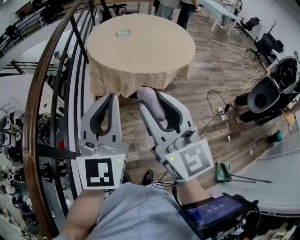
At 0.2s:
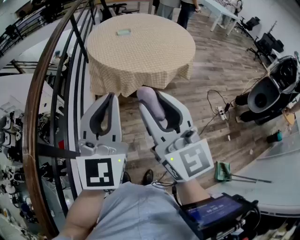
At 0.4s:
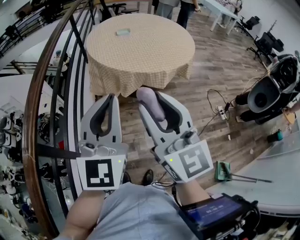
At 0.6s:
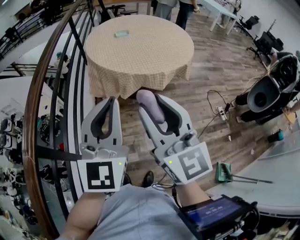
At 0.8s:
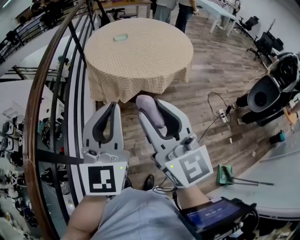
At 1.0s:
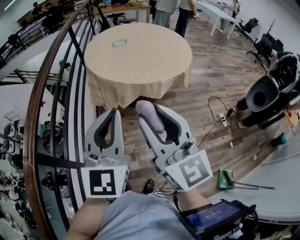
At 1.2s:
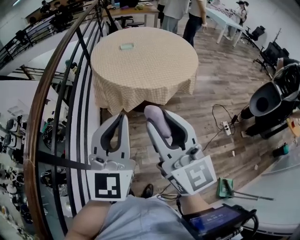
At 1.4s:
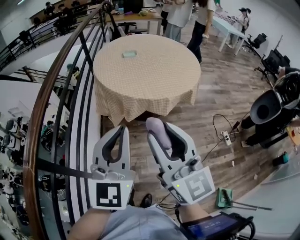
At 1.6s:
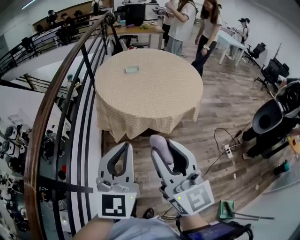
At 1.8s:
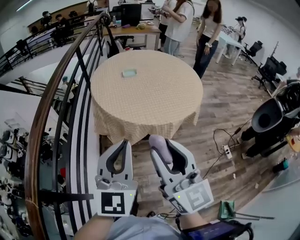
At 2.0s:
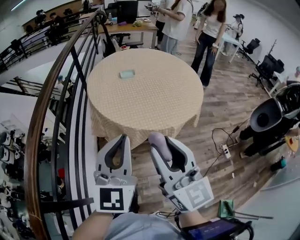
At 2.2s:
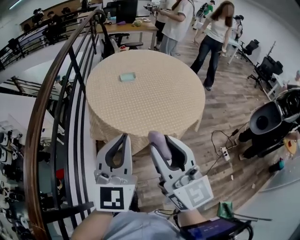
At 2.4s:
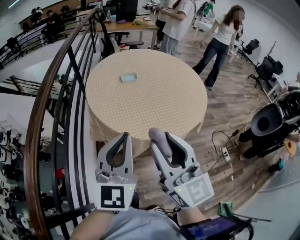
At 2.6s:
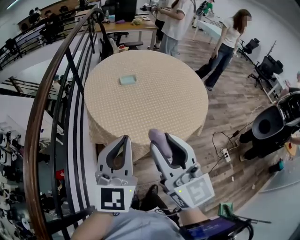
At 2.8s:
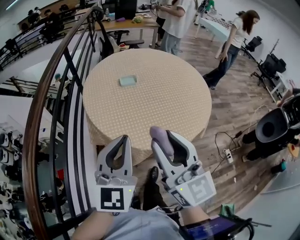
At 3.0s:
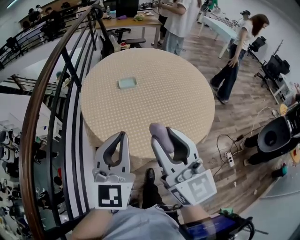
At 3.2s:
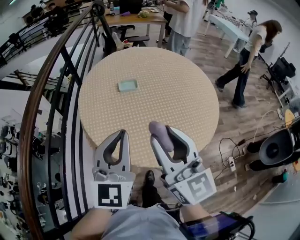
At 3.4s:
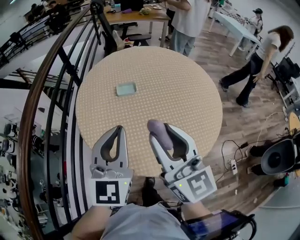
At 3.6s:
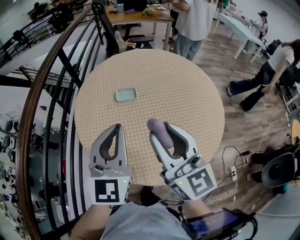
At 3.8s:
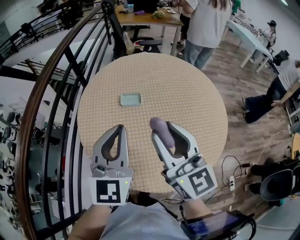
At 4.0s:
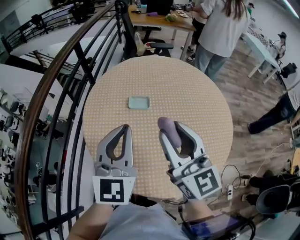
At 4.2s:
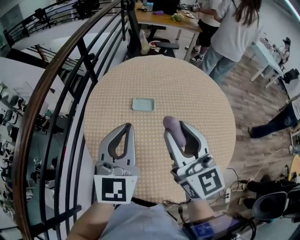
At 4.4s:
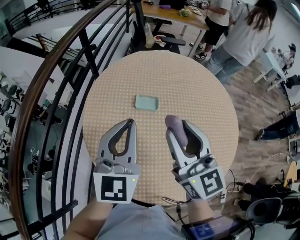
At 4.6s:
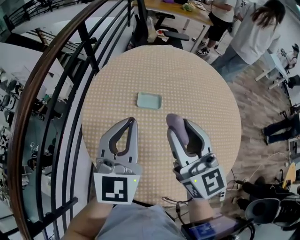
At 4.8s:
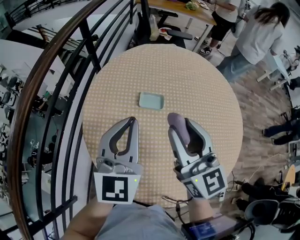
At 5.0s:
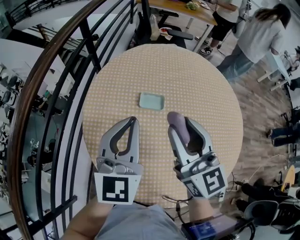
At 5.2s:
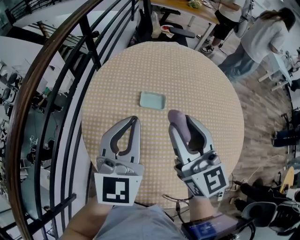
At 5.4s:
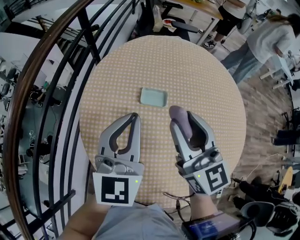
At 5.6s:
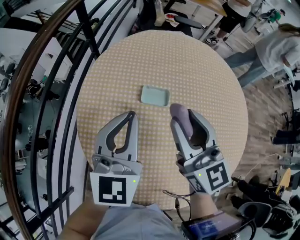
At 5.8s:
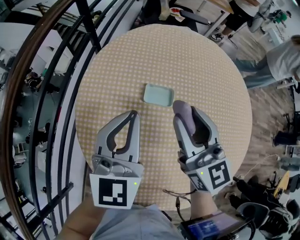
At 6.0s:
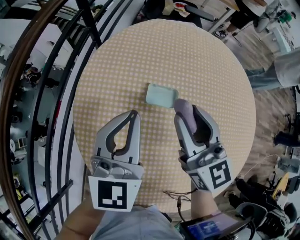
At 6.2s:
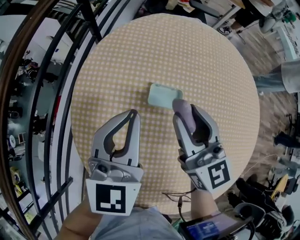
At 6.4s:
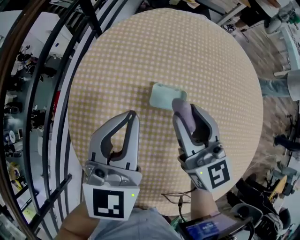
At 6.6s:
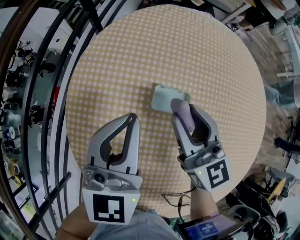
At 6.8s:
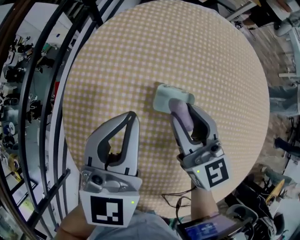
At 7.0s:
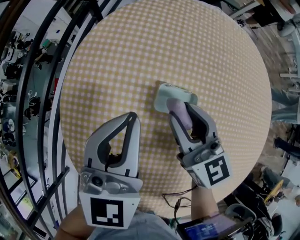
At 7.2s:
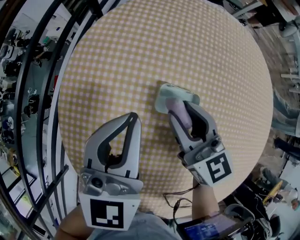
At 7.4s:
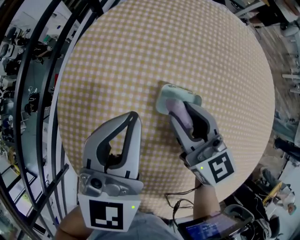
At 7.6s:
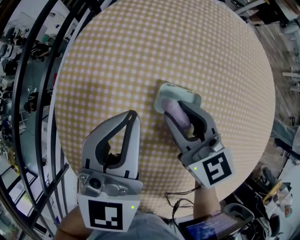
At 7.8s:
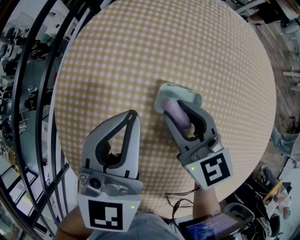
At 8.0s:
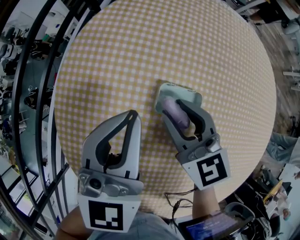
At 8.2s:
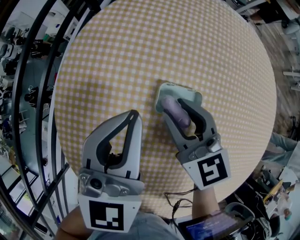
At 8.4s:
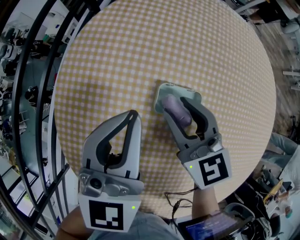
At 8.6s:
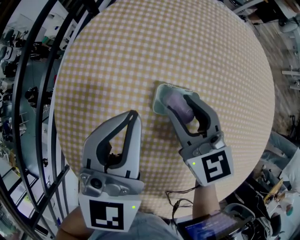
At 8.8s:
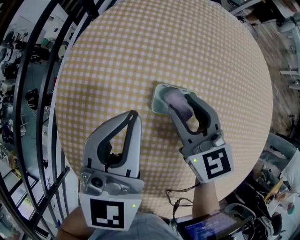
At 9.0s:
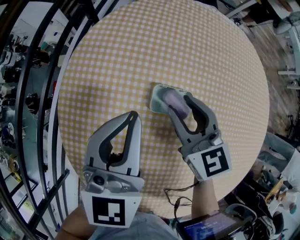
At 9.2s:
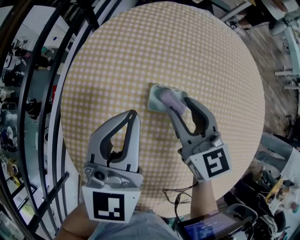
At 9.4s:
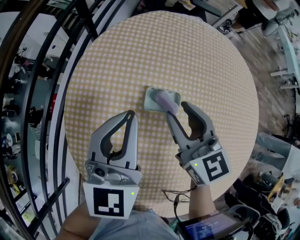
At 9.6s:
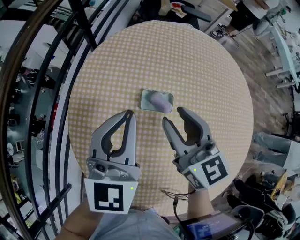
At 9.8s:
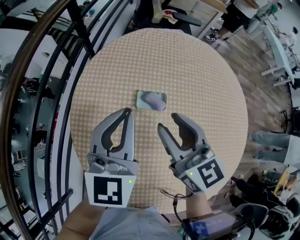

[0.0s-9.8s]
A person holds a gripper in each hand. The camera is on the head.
0.0s to 1.4s: The grippers both shift to the right by roughly 5 cm.
1.4s to 2.8s: The grippers both shift forward by roughly 30 cm.
2.8s to 4.2s: Both grippers travel together forward, roughly 30 cm.
4.2s to 5.6s: The two grippers go approximately 15 cm forward and downward.
5.6s to 7.0s: The left gripper goes approximately 15 cm downward and forward. Meanwhile the right gripper moves downward and forward, approximately 20 cm.
7.0s to 8.4s: There are only small adjustments of the grippers.
8.4s to 9.8s: Both grippers travel together upward and backward, approximately 15 cm.

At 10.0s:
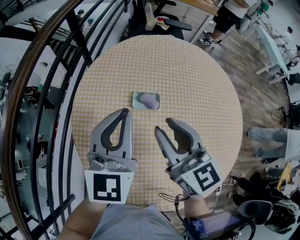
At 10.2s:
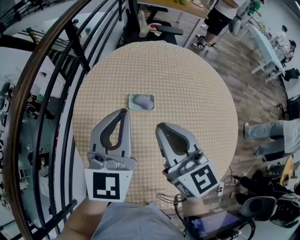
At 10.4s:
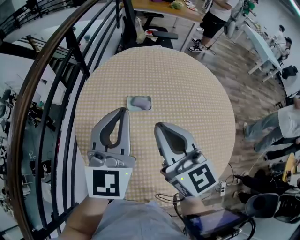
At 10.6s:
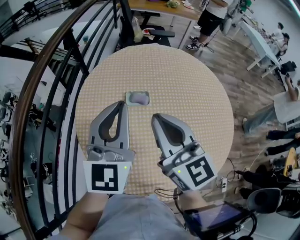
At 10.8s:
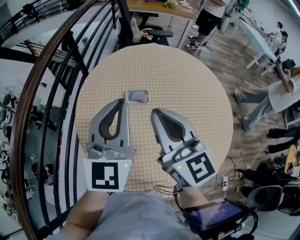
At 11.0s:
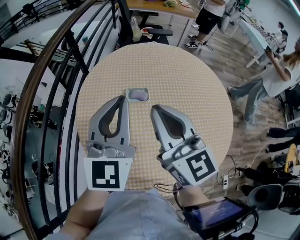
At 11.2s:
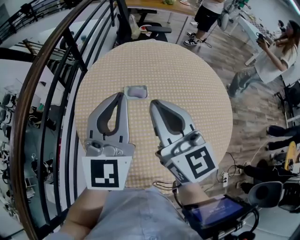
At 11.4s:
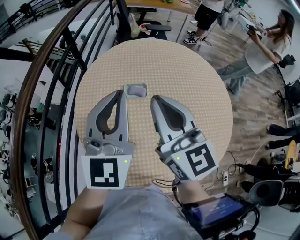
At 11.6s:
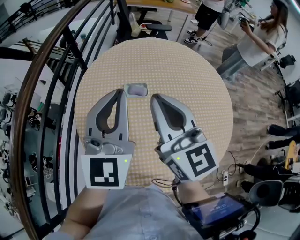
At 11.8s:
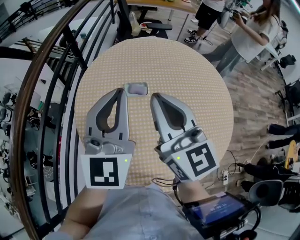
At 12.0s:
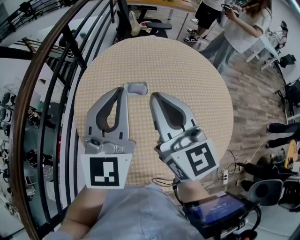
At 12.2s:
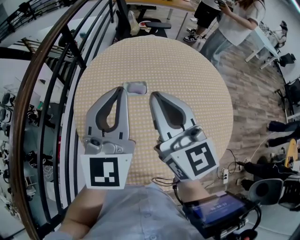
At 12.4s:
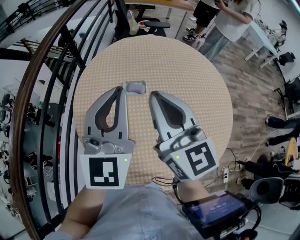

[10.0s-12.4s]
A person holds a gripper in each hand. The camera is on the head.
10.0s to 11.2s: The grippers both shift upward and backward by about 10 cm. The right gripper closes up.
11.2s to 12.4s: The grippers stay close to where they were, moving slightly.

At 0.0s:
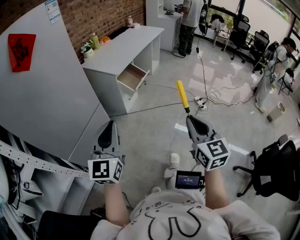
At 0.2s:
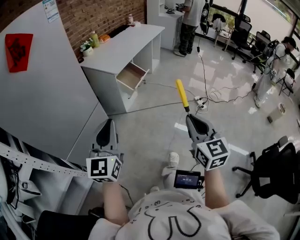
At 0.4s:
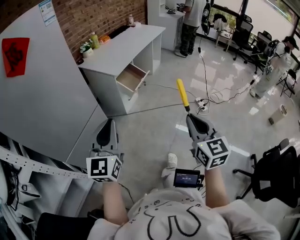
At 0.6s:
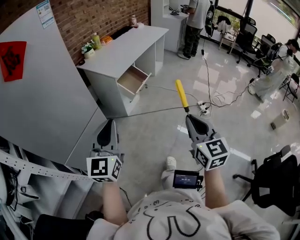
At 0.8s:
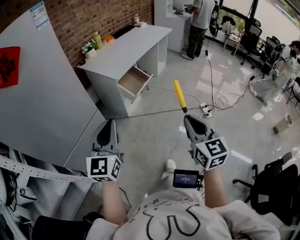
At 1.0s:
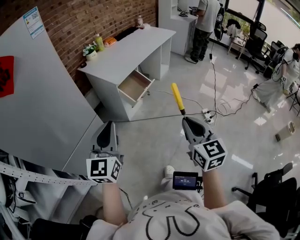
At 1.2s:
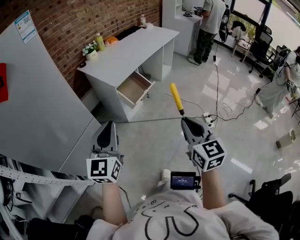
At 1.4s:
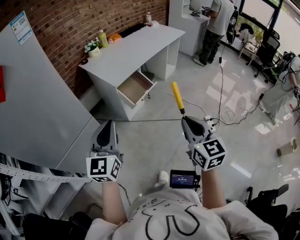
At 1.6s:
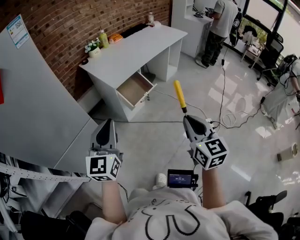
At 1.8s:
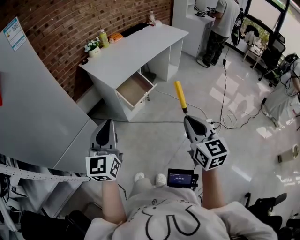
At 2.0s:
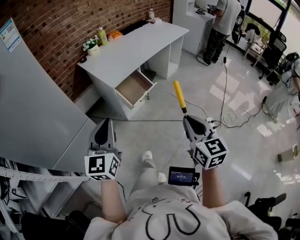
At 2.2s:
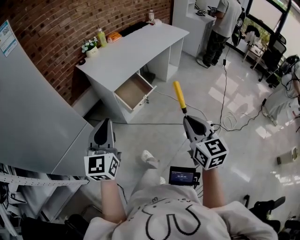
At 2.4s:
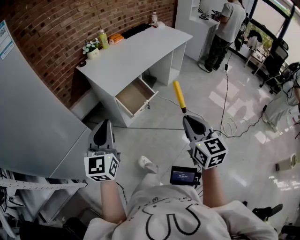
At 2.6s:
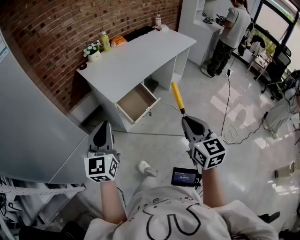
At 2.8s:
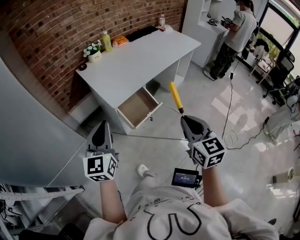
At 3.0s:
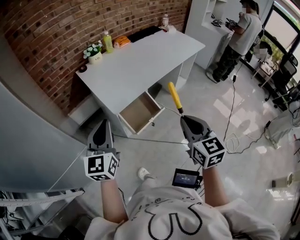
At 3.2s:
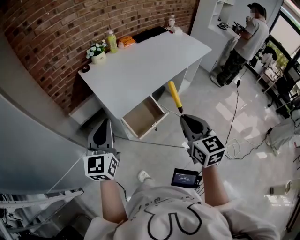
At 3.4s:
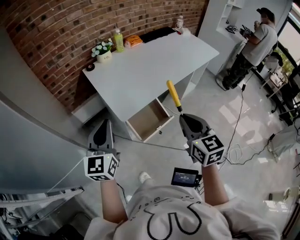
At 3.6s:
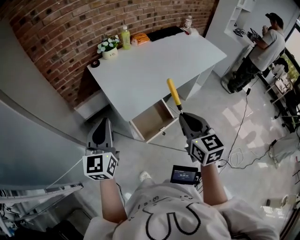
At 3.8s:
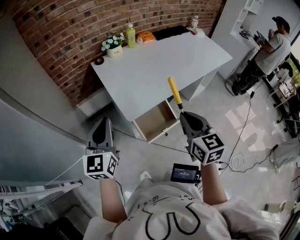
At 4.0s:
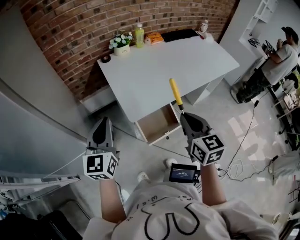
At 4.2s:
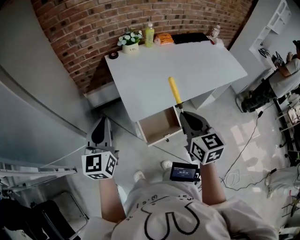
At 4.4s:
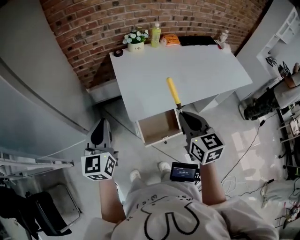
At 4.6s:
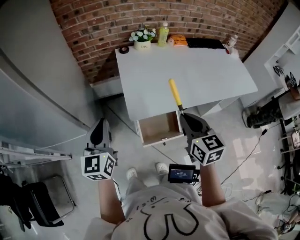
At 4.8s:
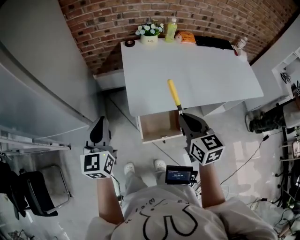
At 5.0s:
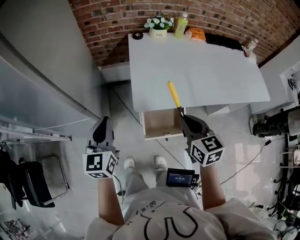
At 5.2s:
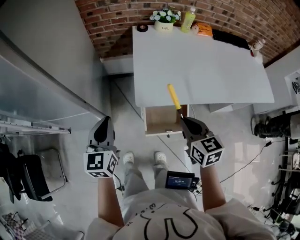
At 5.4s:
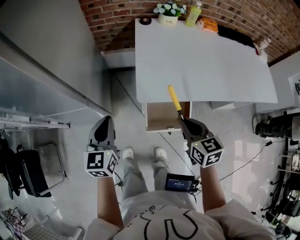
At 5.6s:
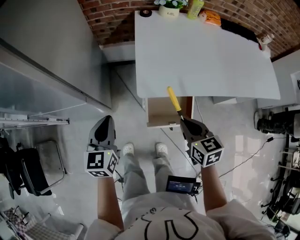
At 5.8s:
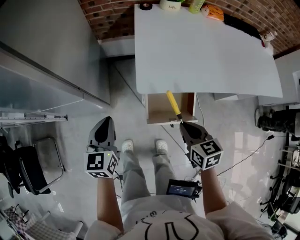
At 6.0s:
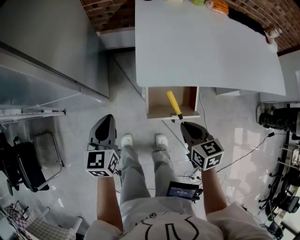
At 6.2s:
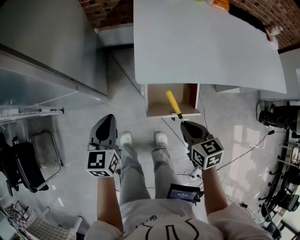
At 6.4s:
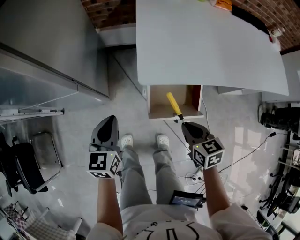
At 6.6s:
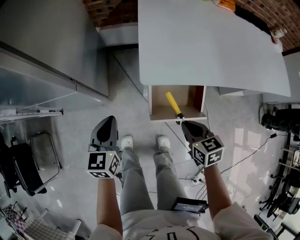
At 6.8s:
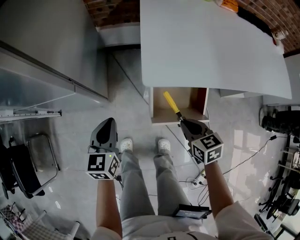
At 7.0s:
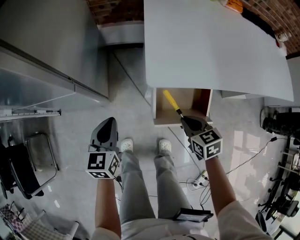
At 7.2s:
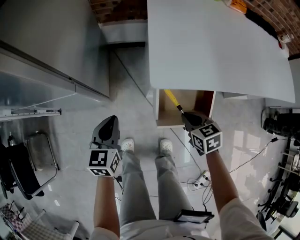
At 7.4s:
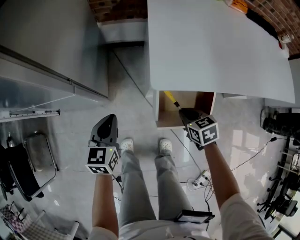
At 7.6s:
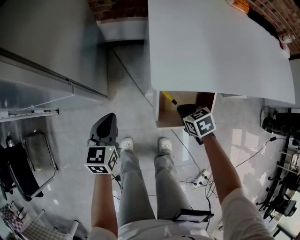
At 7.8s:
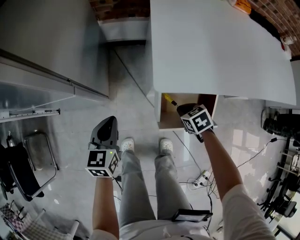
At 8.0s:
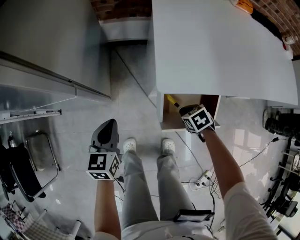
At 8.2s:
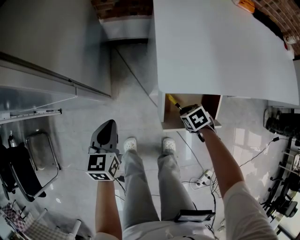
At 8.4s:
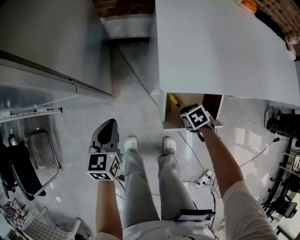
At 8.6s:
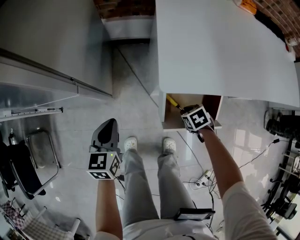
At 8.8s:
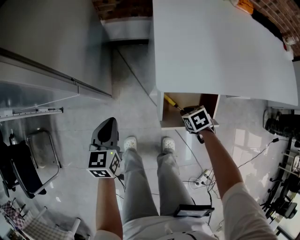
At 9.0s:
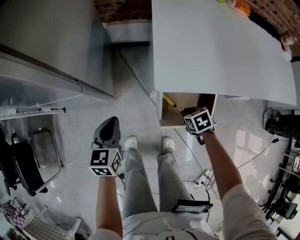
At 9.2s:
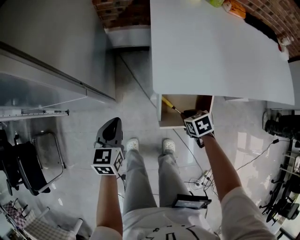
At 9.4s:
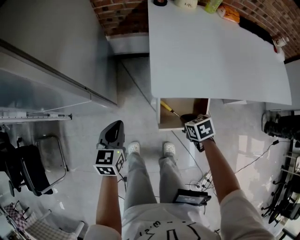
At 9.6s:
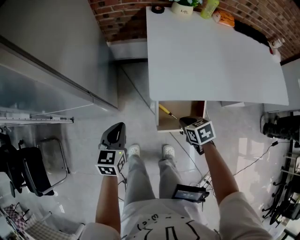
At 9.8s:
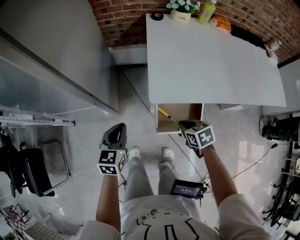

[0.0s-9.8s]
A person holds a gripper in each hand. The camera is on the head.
0.0s to 1.4s: The grippers both shift forward and to the right by approximately 25 cm.
1.4s to 2.8s: Both grippers move forward, roughly 25 cm.
2.8s to 4.2s: The left gripper goes about 15 cm forward, and rotates approximately 20 degrees, while the right gripper goes roughly 25 cm forward, and turns by roughly 20 degrees.
4.2s to 5.6s: The grippers both shift downward by roughly 15 cm. The right gripper swivels about 30 degrees; the left gripper turns by roughly 20 degrees.
5.6s to 7.0s: Both grippers move downward, roughly 20 cm.
7.0s to 8.4s: The left gripper changes place by about 5 cm. Meanwhile the right gripper travels downward by about 15 cm, and rotates about 30 degrees.
8.4s to 9.8s: The right gripper moves upward, approximately 20 cm, and changes its angle by roughly 20 degrees. Meanwhile the left gripper shifts some 15 cm upward.

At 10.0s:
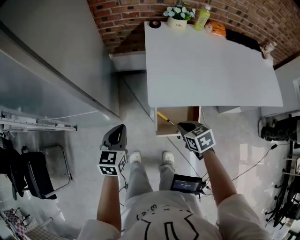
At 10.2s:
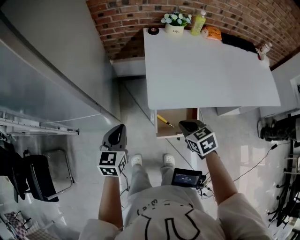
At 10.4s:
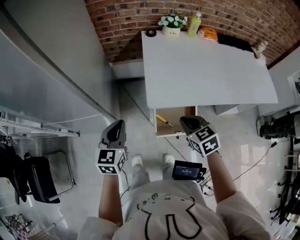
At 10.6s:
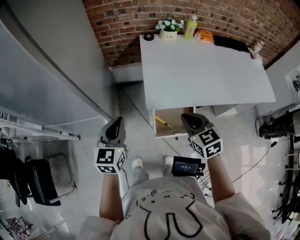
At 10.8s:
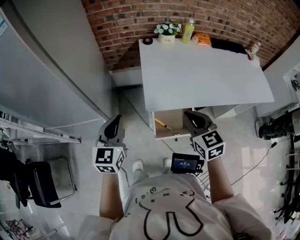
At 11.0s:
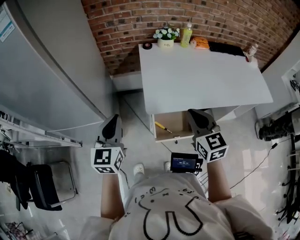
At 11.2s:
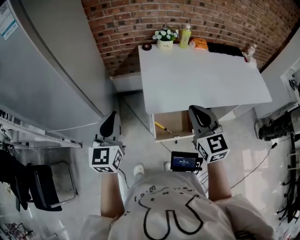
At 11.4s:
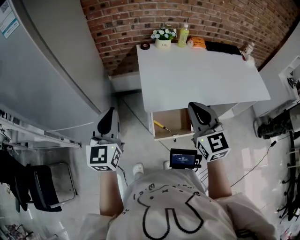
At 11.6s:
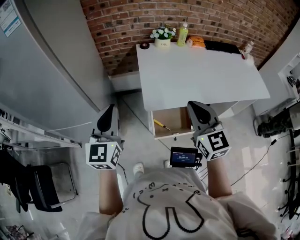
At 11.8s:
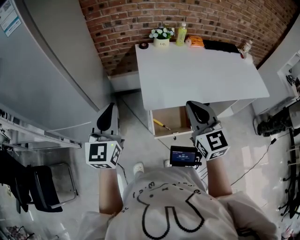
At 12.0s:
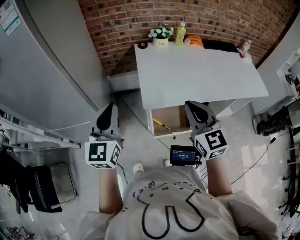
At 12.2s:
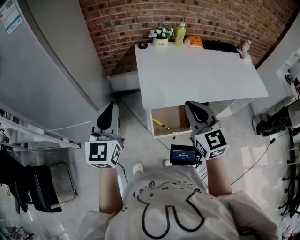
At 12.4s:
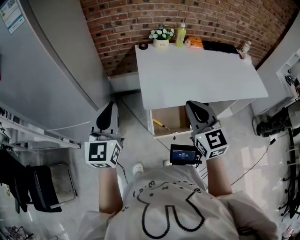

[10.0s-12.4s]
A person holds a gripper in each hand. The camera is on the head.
10.0s to 11.2s: The grippers both shift upward by approximately 25 cm. The right gripper tips its fingers upward by about 40 degrees. The left gripper rotates approximately 30 degrees.
11.2s to 12.4s: The grippers make only small movements.
